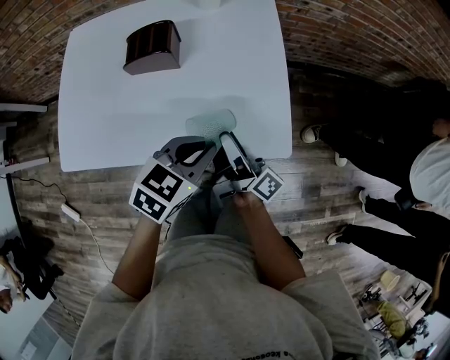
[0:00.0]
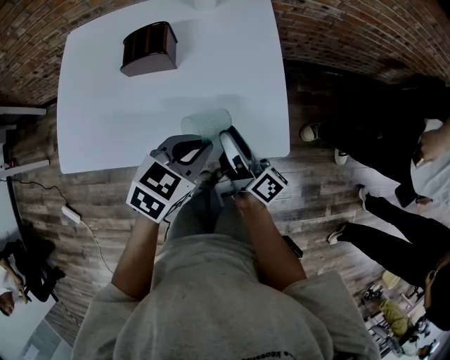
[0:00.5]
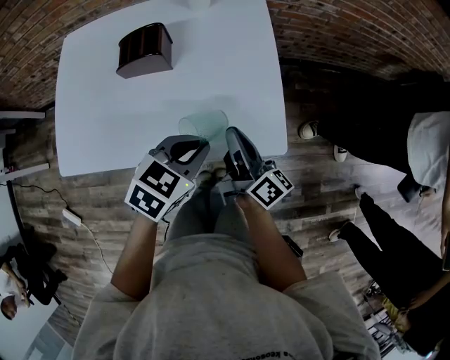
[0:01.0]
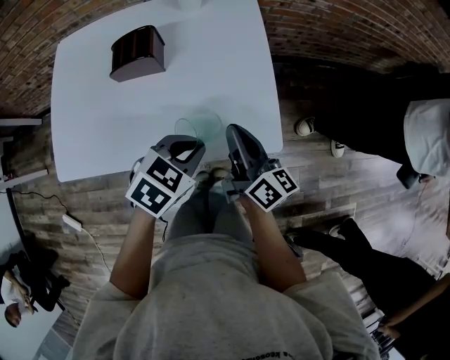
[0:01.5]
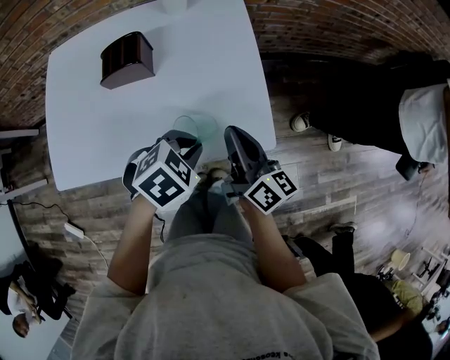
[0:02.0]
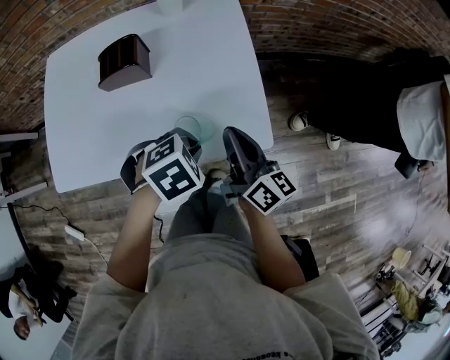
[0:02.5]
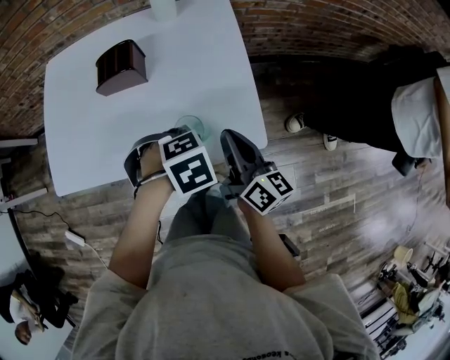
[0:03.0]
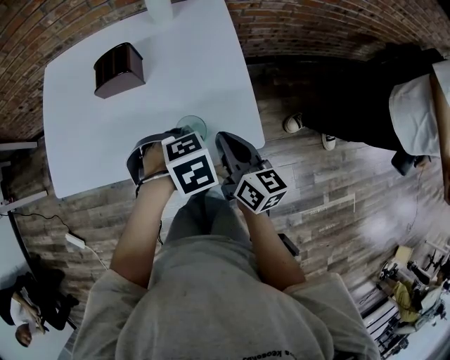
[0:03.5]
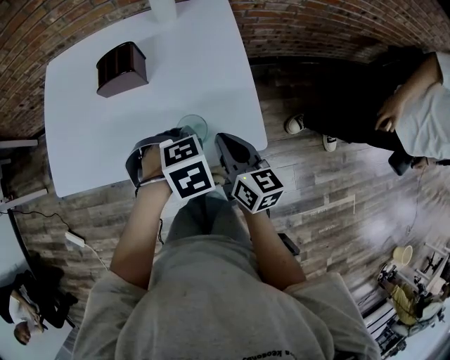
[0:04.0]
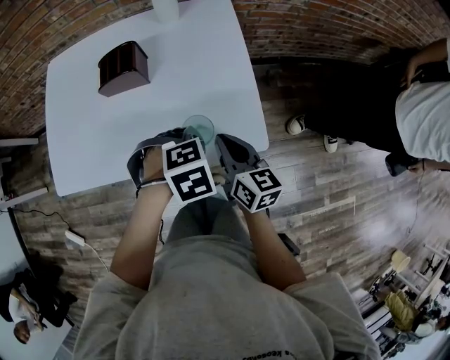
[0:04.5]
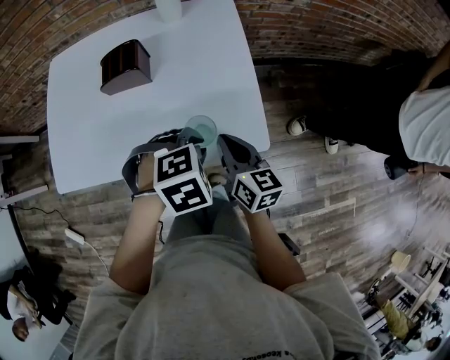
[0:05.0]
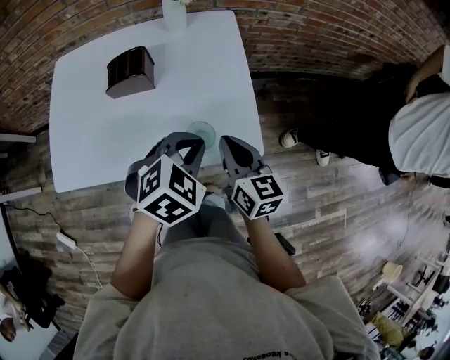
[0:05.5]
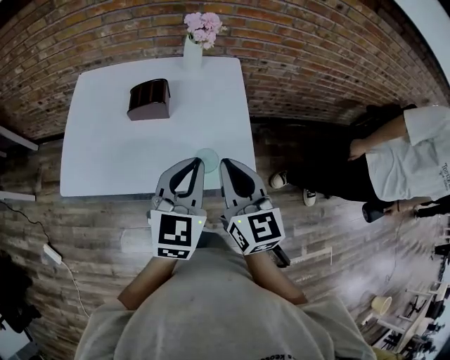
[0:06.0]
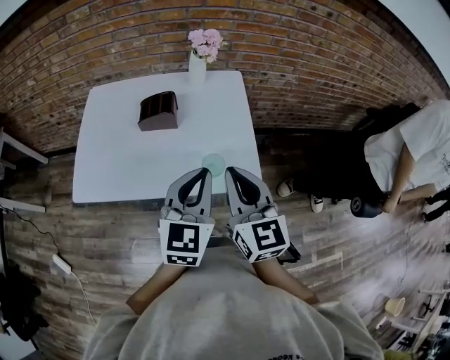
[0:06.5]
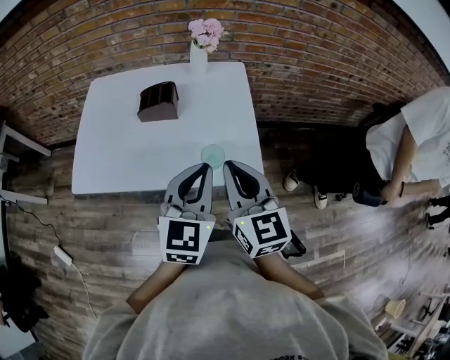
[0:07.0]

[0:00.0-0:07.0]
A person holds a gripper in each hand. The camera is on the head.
0:00.0 to 0:02.0: The right gripper heads to the right, covering about 5 cm, turns by about 40 degrees, and closes; the left gripper changes its angle by some 30 degrees.
0:02.0 to 0:03.5: The left gripper changes its angle by approximately 30 degrees.
0:03.5 to 0:05.0: The grippers make only small movements.
0:05.0 to 0:07.0: Both grippers move upward, roughly 20 cm. The left gripper tilts its fingers approximately 60 degrees upward. The right gripper turns by approximately 30 degrees.

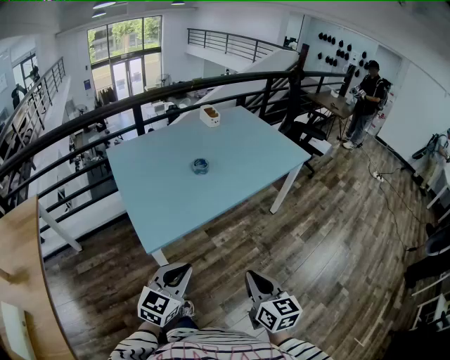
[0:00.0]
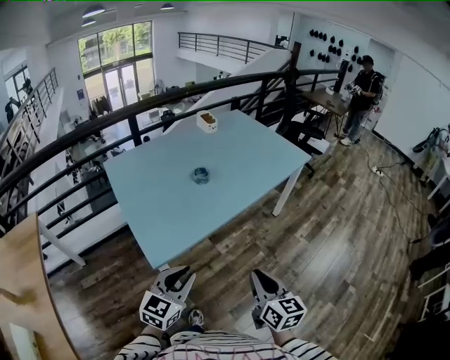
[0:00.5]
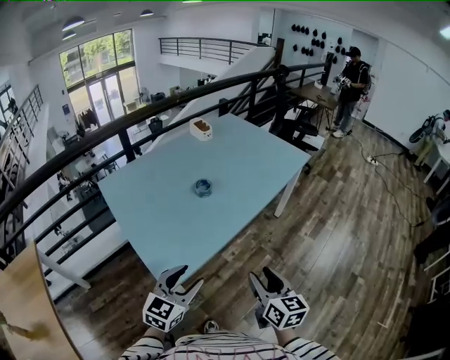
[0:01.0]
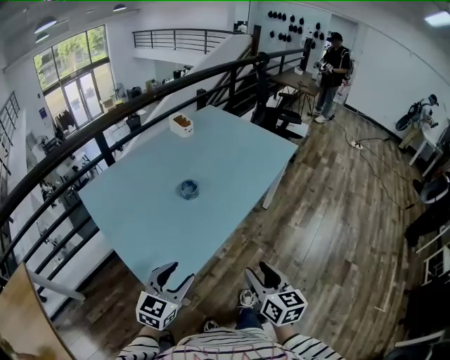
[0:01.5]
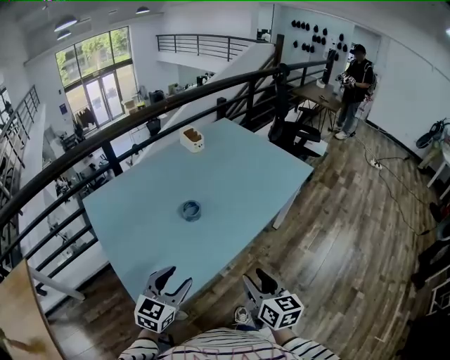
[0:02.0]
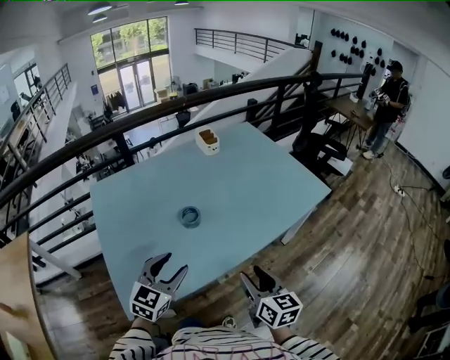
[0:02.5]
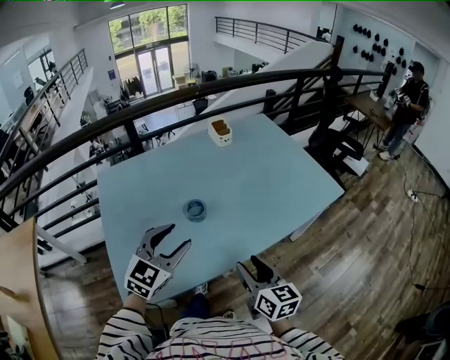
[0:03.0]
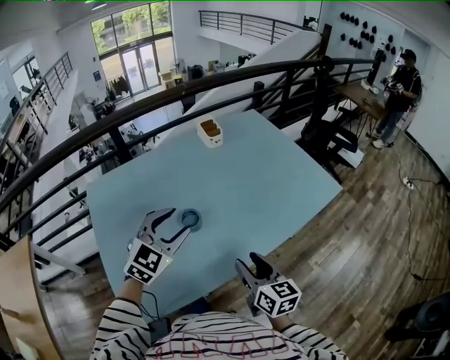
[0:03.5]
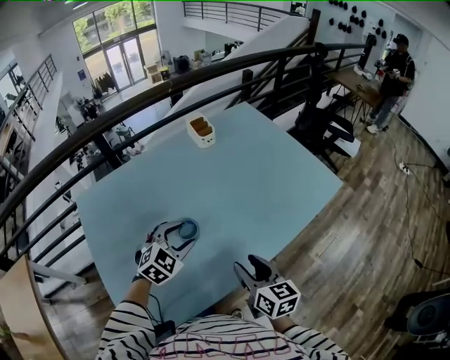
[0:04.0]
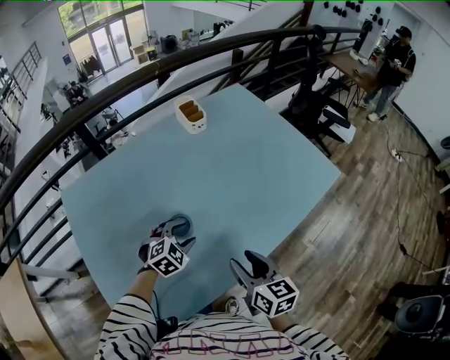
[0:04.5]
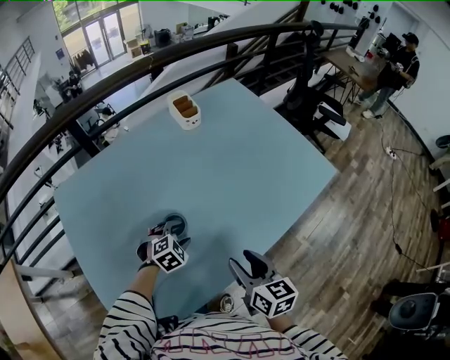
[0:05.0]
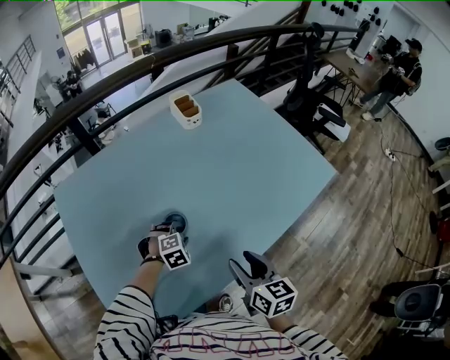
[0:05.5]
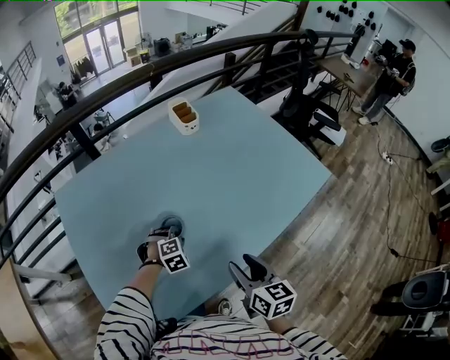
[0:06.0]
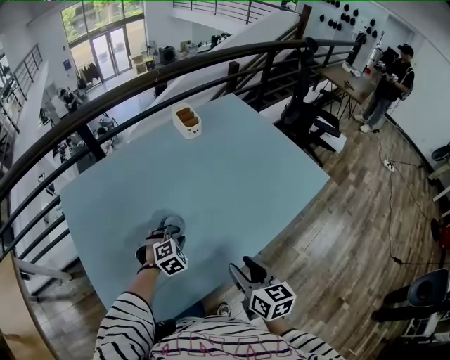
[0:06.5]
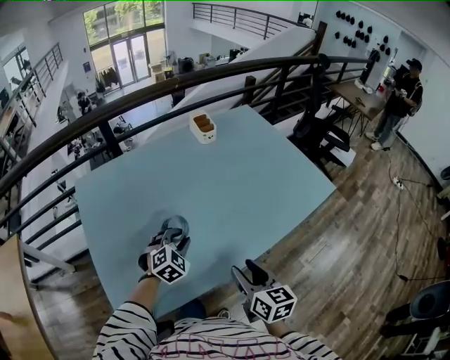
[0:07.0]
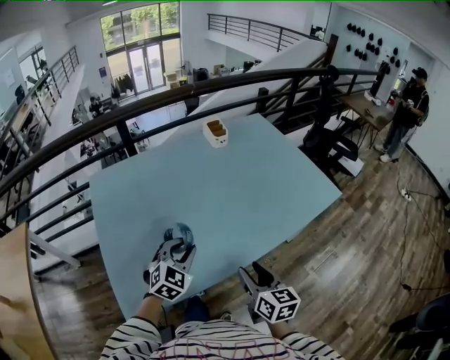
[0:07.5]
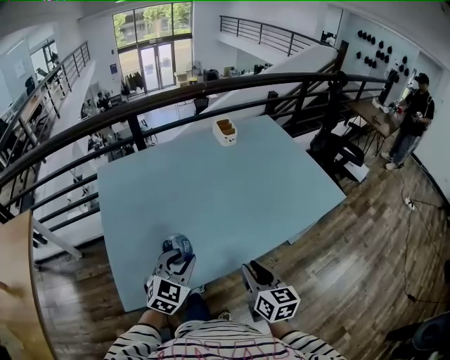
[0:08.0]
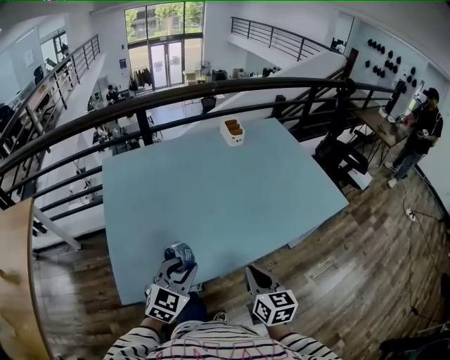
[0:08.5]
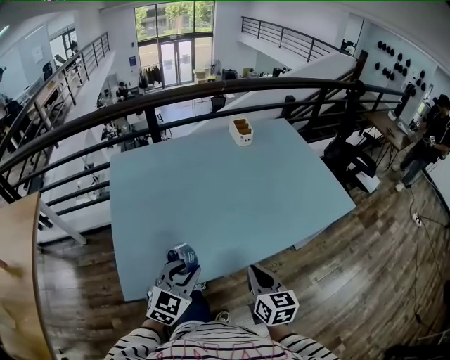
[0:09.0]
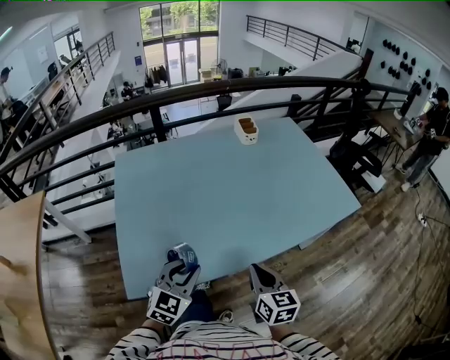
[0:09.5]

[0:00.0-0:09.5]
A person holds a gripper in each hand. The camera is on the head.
0:00.0 to 0:02.0: Both grippers travel together forward, some 25 cm. The left gripper opens its fingers; the right gripper opens up.
0:02.0 to 0:04.0: The two grippers go roughly 25 cm forward. The left gripper swivels approximately 30 degrees.
0:04.0 to 0:05.5: The left gripper heads downward, covering roughly 20 cm, and rotates about 30 degrees.
0:05.5 to 0:07.5: The left gripper travels upward and backward by roughly 25 cm, and tilts its fingers some 40 degrees upward; the right gripper is displaced backward by about 10 cm.
0:07.5 to 0:09.5: The right gripper closes up, while the left gripper goes some 10 cm backward.

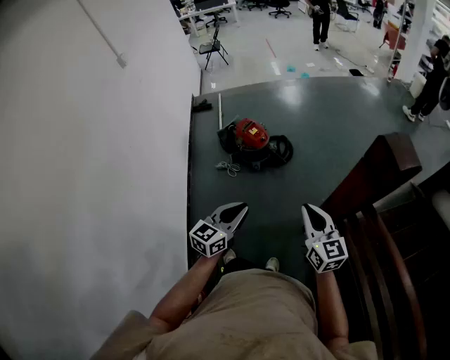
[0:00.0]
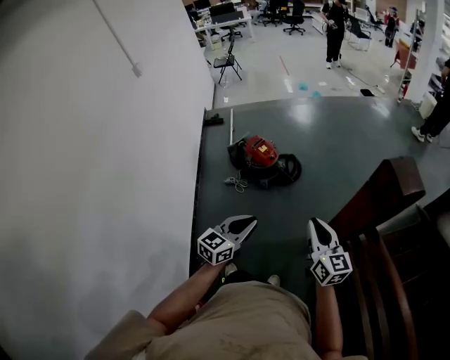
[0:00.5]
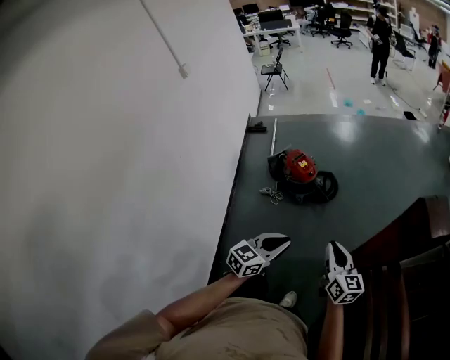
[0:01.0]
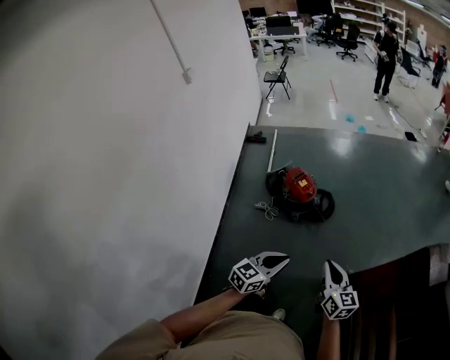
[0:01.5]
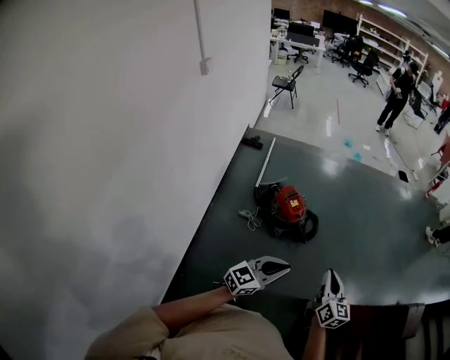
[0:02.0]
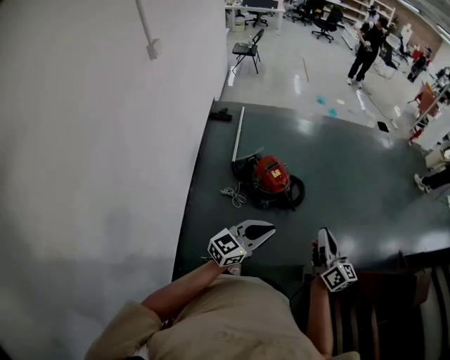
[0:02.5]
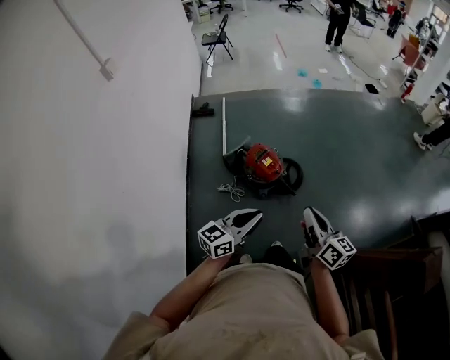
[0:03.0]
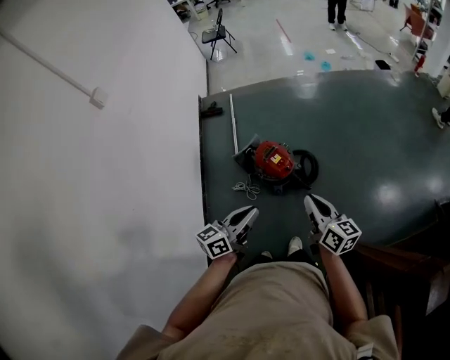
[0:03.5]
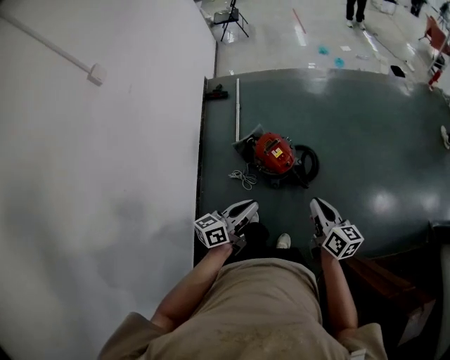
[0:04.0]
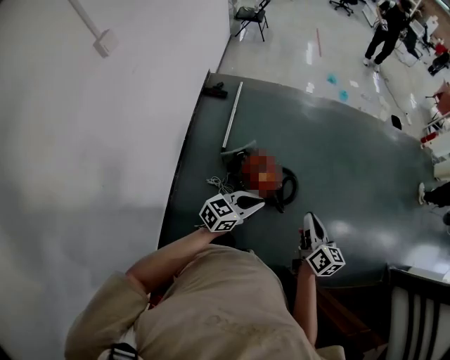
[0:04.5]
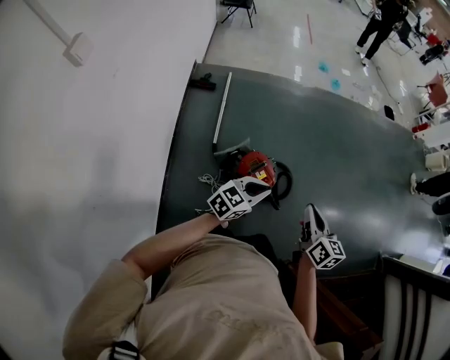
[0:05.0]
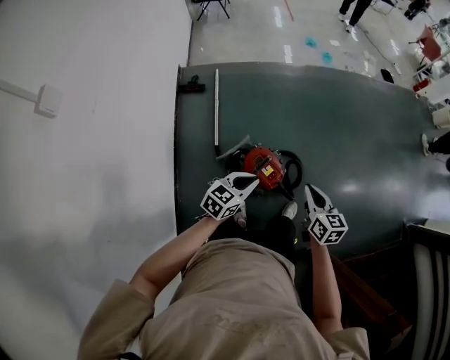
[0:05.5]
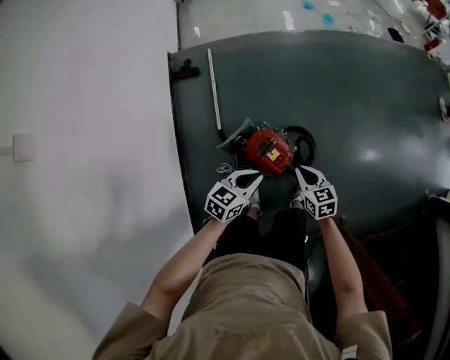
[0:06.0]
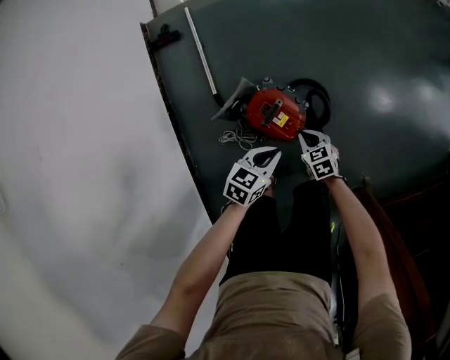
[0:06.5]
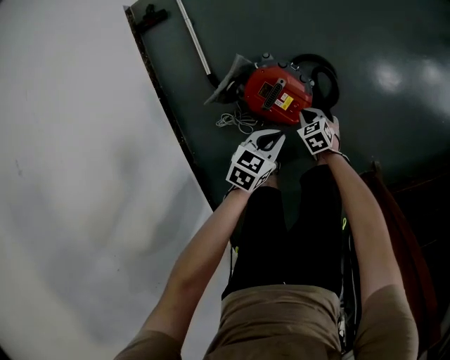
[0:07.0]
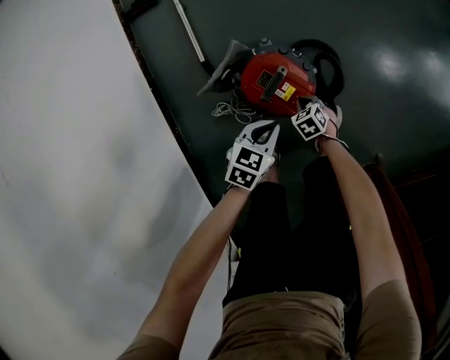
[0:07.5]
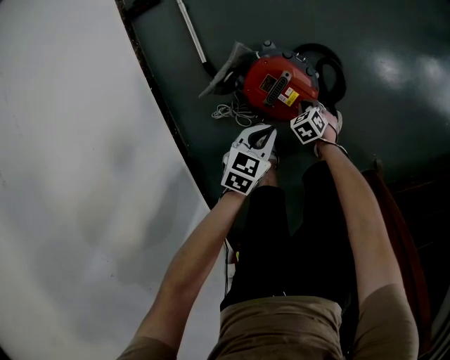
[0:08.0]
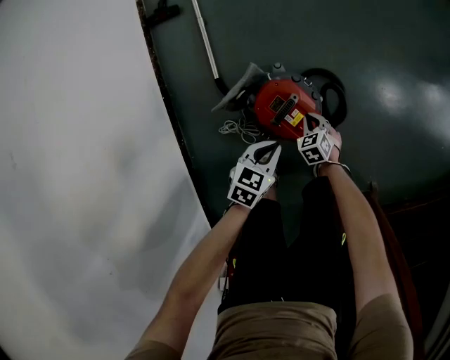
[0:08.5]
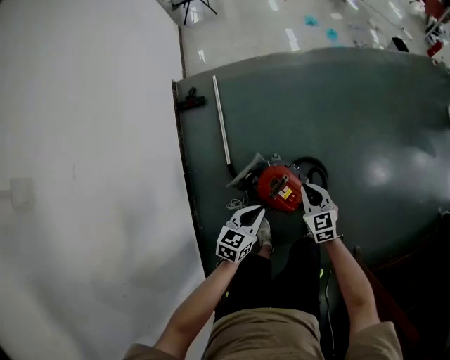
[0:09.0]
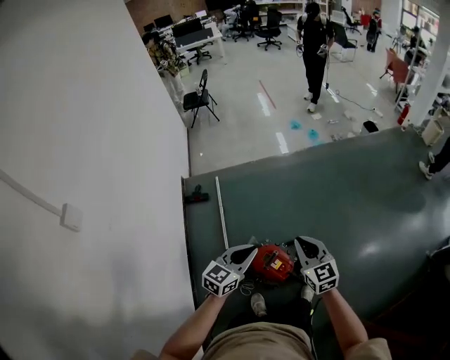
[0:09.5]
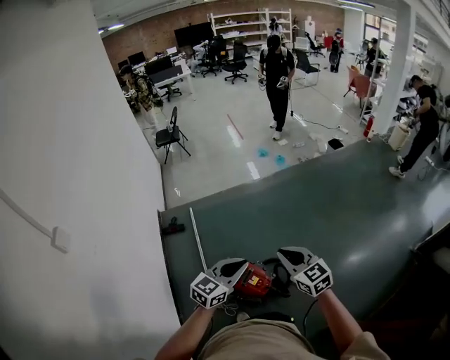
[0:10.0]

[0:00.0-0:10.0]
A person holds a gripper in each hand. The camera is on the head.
0:00.0 to 0:02.0: Both grippers move forward and to the left, some 20 cm.
0:02.0 to 0:04.0: The two grippers go roughly 25 cm forward. The left gripper changes its angle by roughly 30 degrees; the right gripper rotates some 20 degrees.
0:04.0 to 0:06.0: The right gripper travels forward, downward and to the left by about 40 cm, and turns by approximately 30 degrees. Meanwhile the left gripper travels forward and downward by roughly 35 cm, and rotates some 40 degrees.
0:06.0 to 0:08.0: The two grippers go approximately 40 cm downward. The right gripper points its fingers some 40 degrees further downward.
0:08.0 to 0:10.0: The two grippers go roughly 70 cm upward. The right gripper tips its fingers upward by some 60 degrees. The left gripper tips its fingers upward by some 30 degrees.
